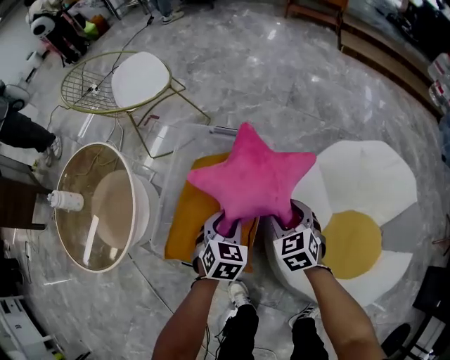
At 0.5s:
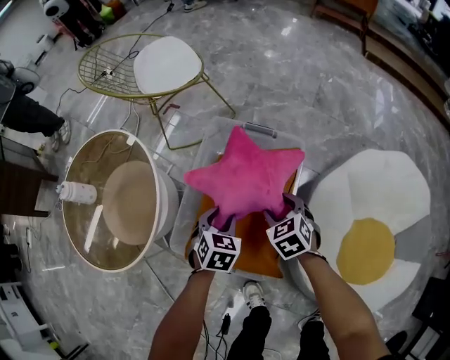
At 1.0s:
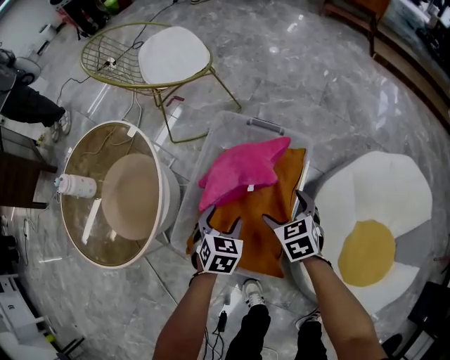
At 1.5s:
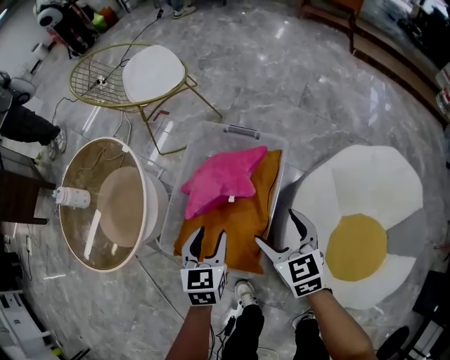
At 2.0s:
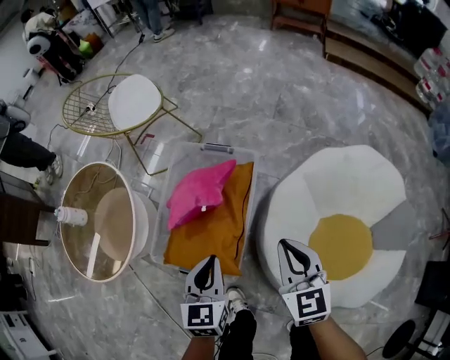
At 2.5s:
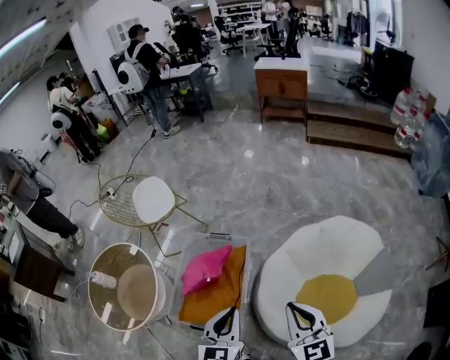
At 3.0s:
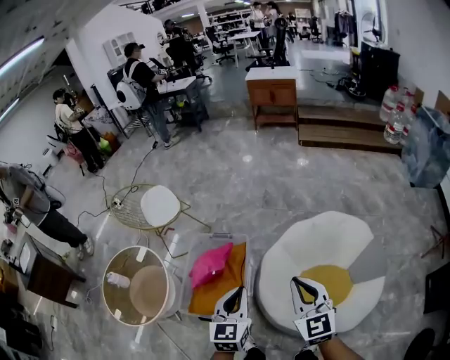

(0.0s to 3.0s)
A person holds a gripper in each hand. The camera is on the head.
0.0s - 1.5s: The right gripper heads to the left and upward, covering about 10 cm. The left gripper shifts about 10 cm to the left, and rotates some 30 degrees.
1.5s - 3.0s: Both grippers move upward, to the right and backward, roughly 60 cm. The left gripper swivels some 30 degrees, and closes up. The right gripper turns by about 30 degrees, and closes its fingers.

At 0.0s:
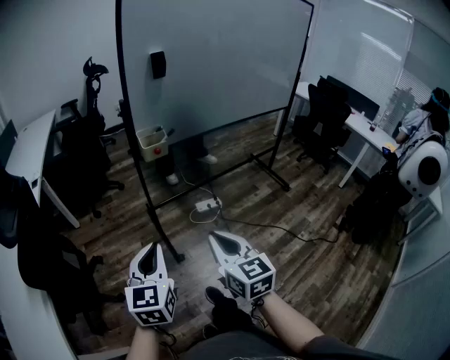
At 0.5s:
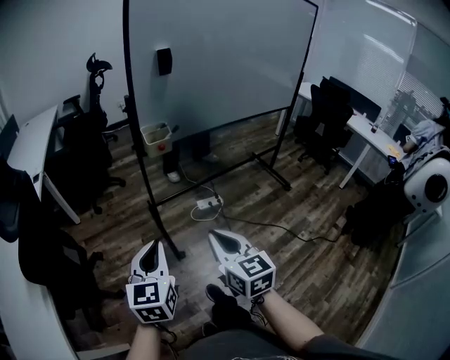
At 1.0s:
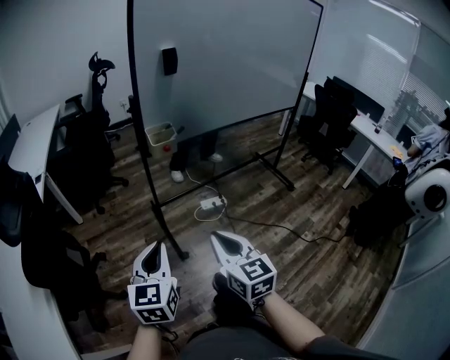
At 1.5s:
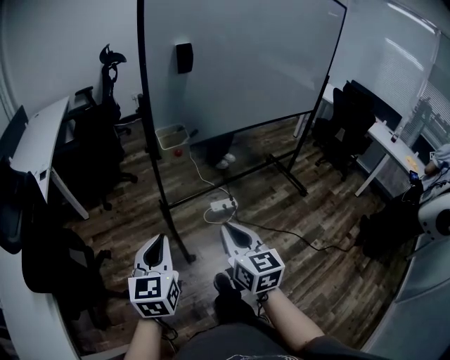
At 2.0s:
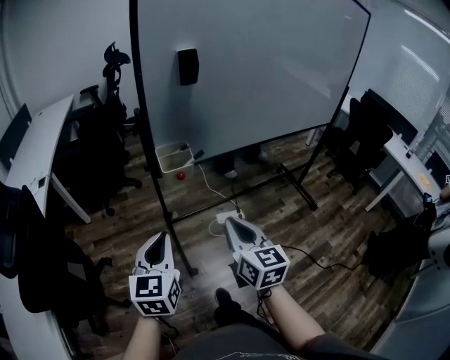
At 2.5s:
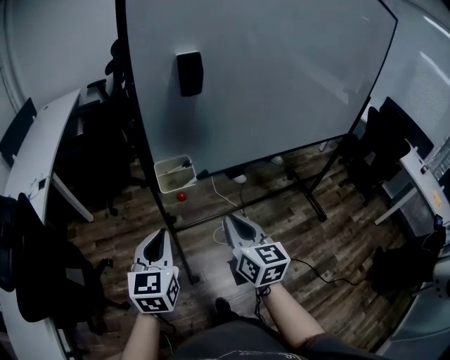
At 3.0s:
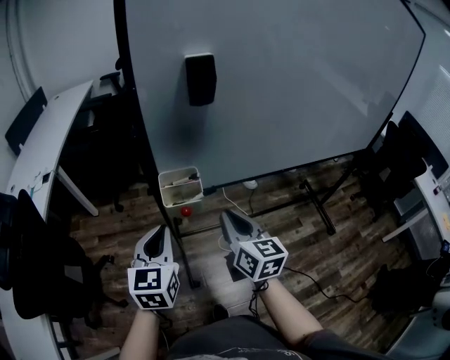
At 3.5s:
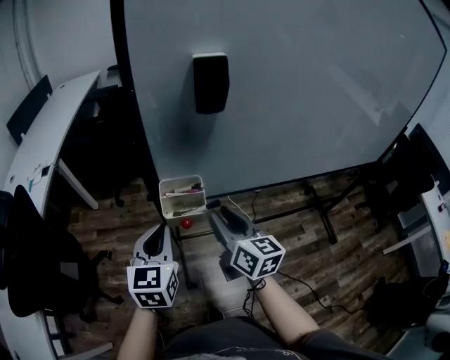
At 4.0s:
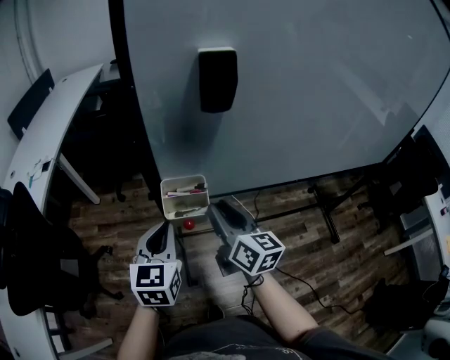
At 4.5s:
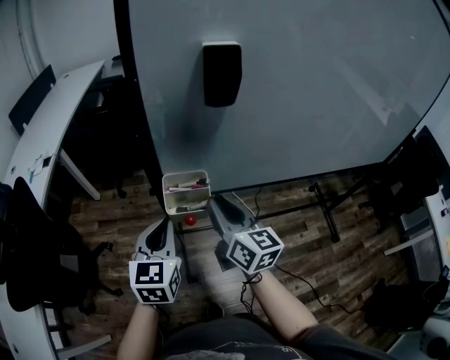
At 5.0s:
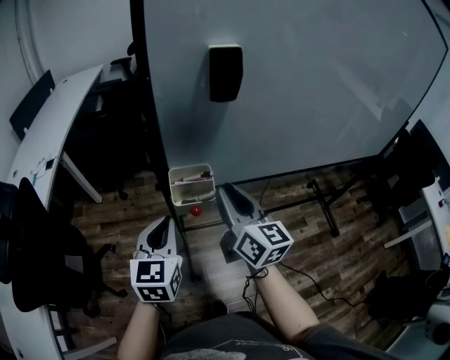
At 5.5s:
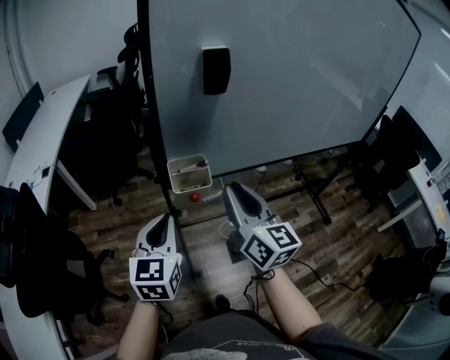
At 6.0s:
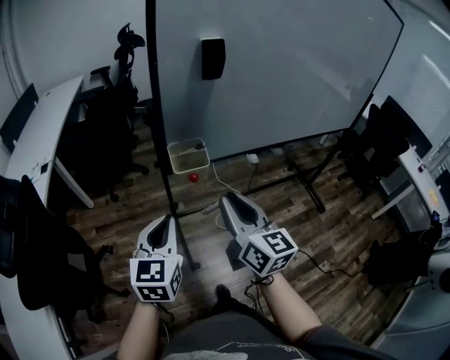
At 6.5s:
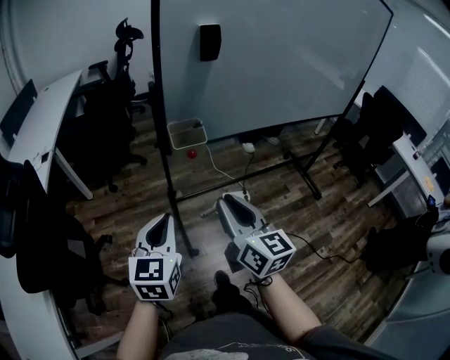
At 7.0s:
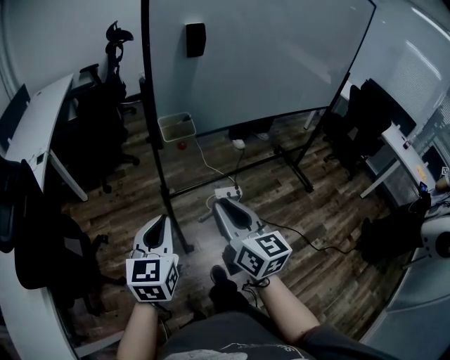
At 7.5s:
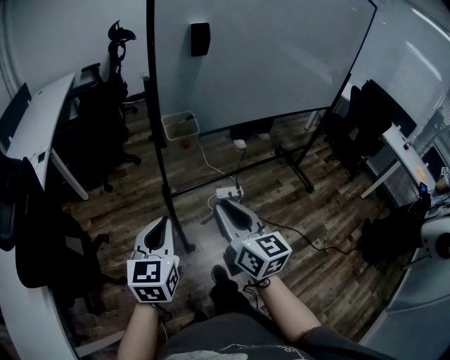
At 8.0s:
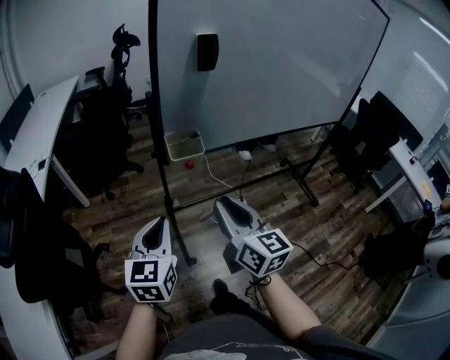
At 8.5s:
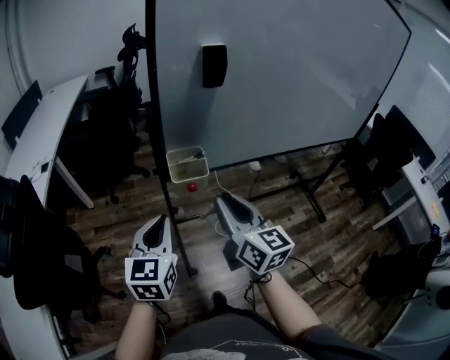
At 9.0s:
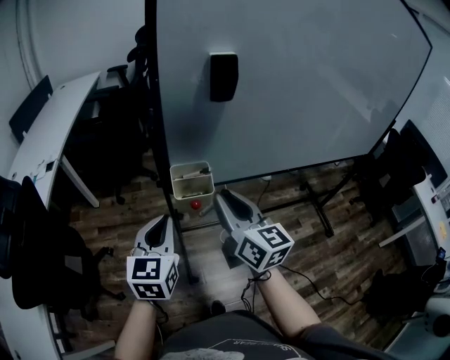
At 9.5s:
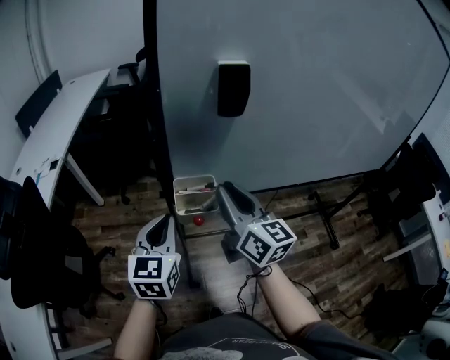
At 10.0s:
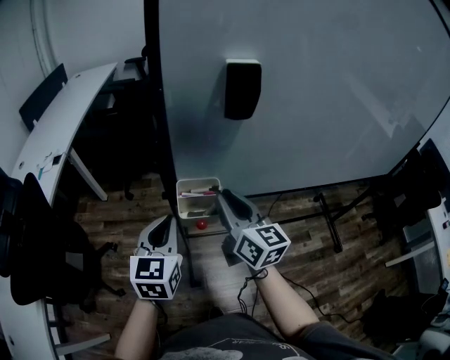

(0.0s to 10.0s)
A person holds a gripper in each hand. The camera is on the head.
0.0s - 2.0s: The grippers both shift forward by about 20 cm.
2.0s - 4.0s: Both grippers travel together forward, about 25 cm. The right gripper turns by some 20 degrees, and opens its fingers.
4.0s - 6.0s: Both grippers move backward, about 15 cm.
6.0s - 8.0s: The right gripper goes approximately 5 cm backward.
8.0s - 10.0s: The two grippers go approximately 20 cm forward.

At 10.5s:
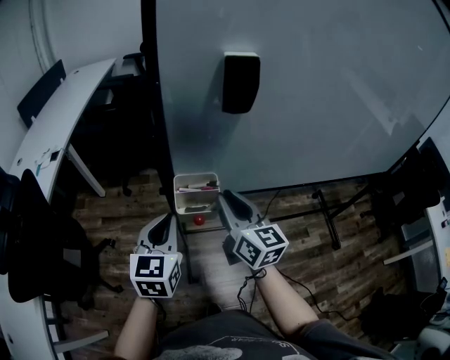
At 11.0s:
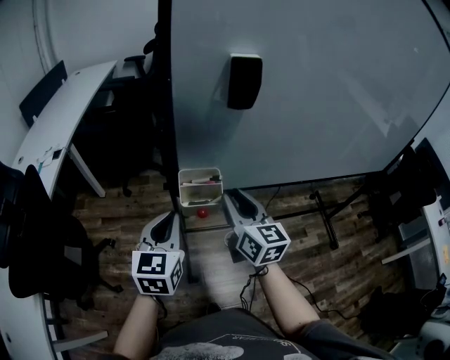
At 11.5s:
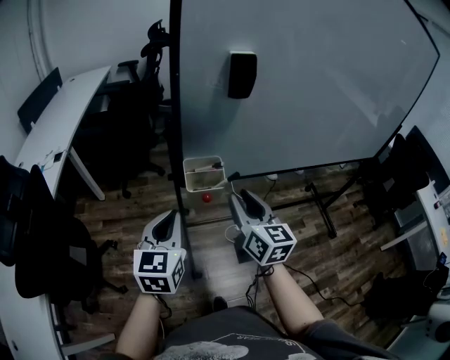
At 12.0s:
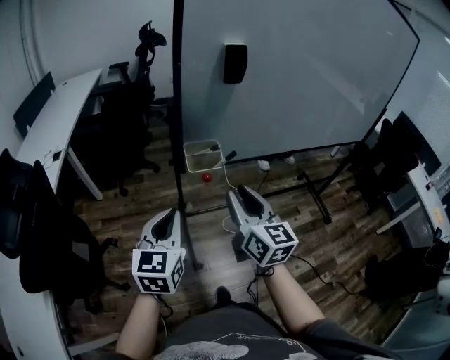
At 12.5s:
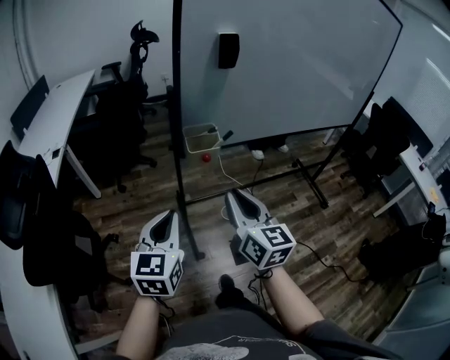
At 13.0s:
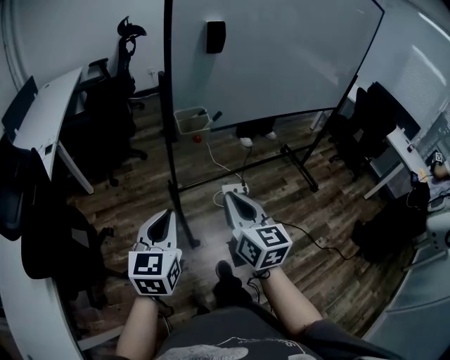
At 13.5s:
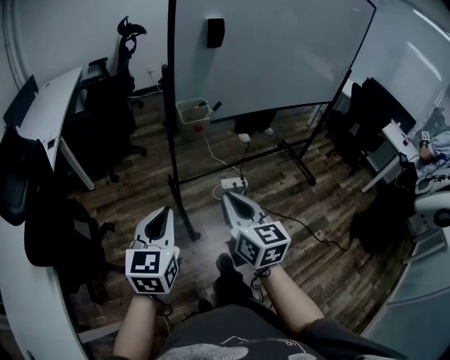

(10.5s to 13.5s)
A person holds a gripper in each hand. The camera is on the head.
10.5s - 12.0s: Both grippers move backward, roughly 15 cm.
12.0s - 13.5s: The two grippers go some 20 cm backward. The right gripper closes up.

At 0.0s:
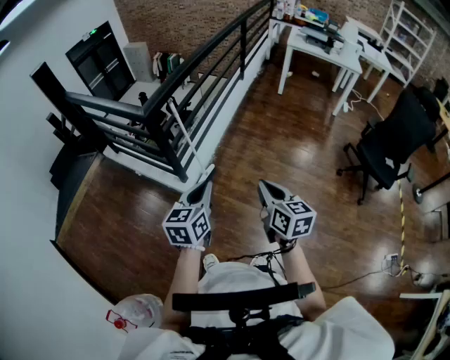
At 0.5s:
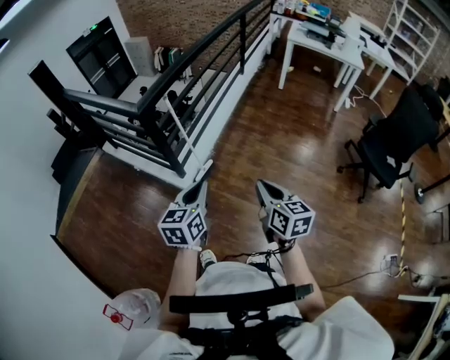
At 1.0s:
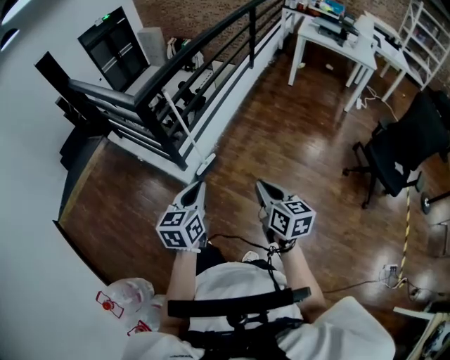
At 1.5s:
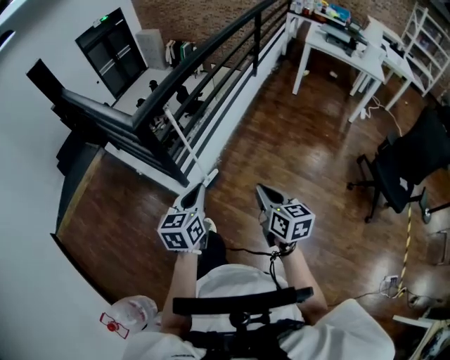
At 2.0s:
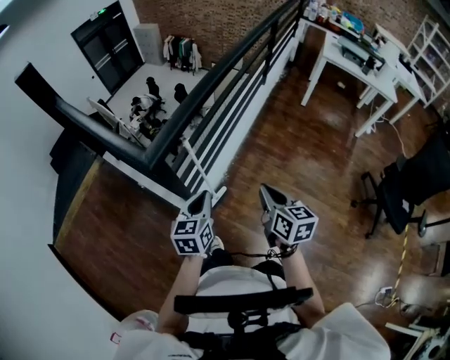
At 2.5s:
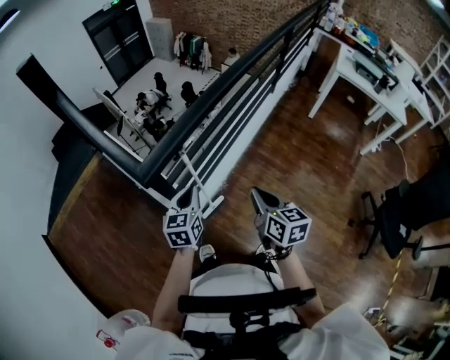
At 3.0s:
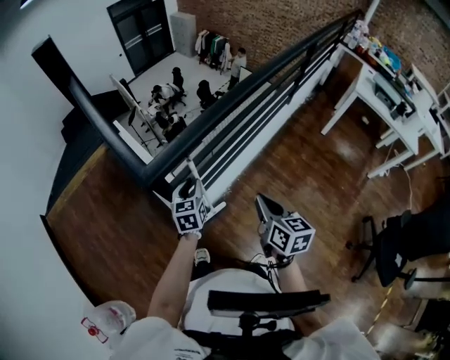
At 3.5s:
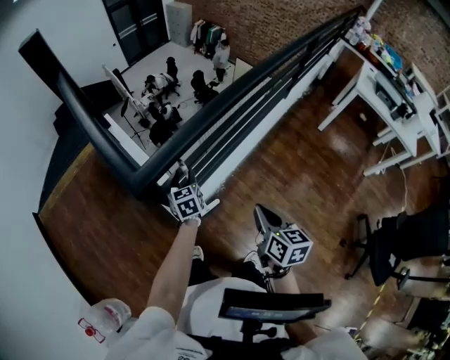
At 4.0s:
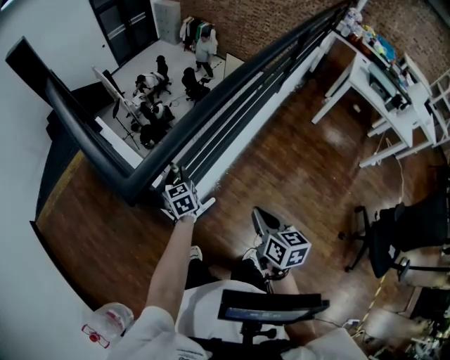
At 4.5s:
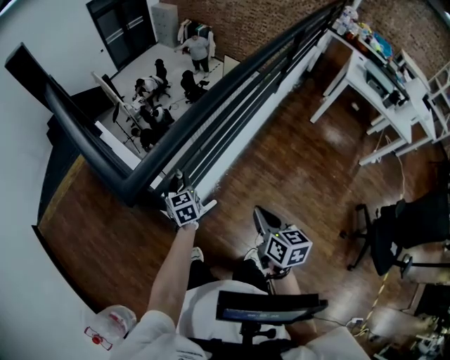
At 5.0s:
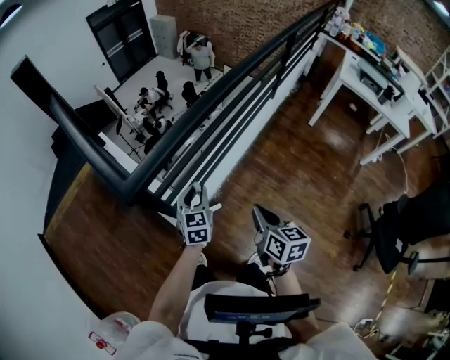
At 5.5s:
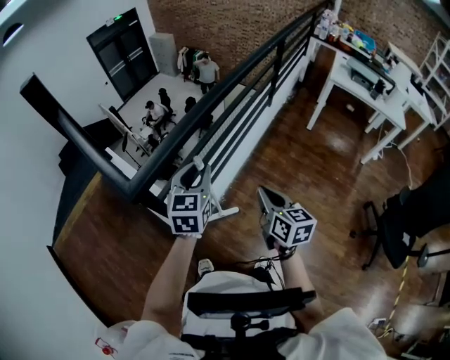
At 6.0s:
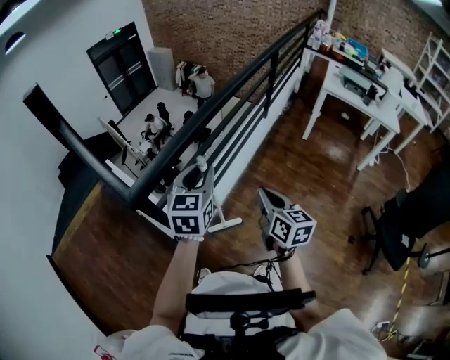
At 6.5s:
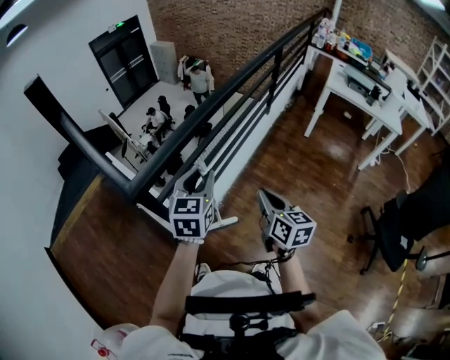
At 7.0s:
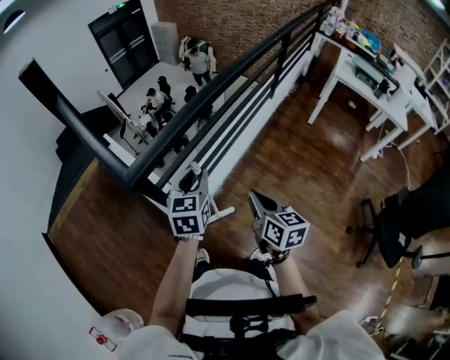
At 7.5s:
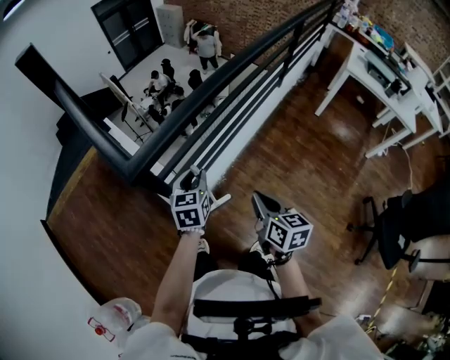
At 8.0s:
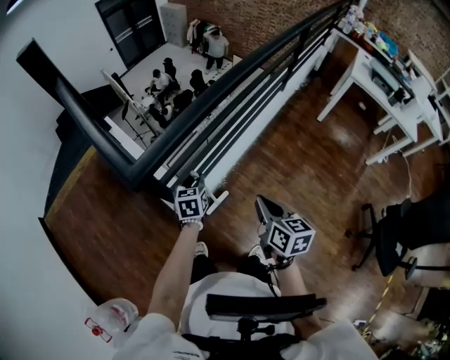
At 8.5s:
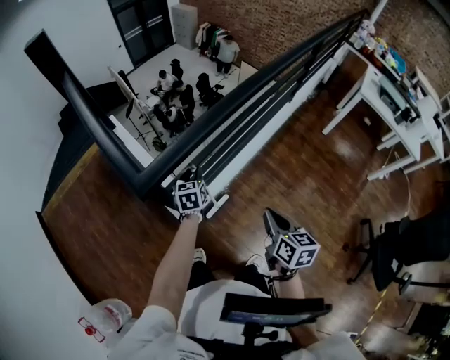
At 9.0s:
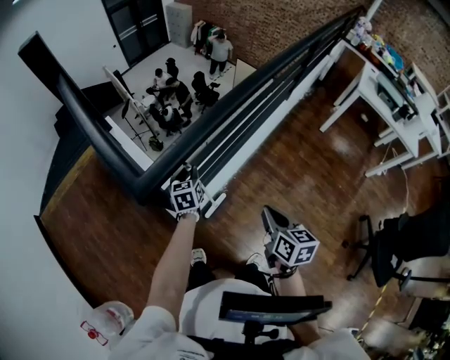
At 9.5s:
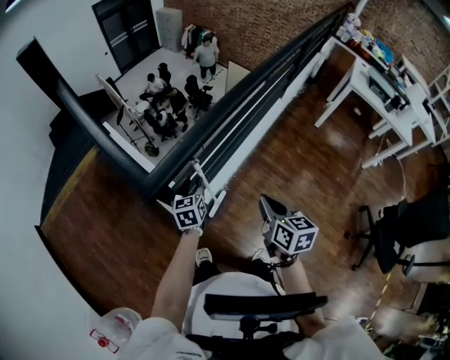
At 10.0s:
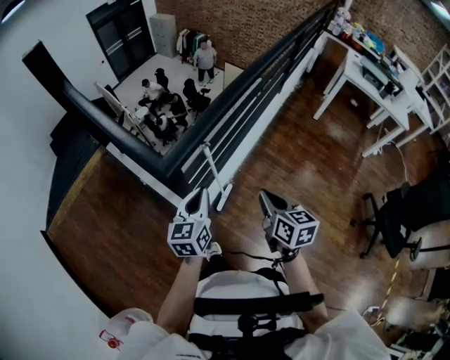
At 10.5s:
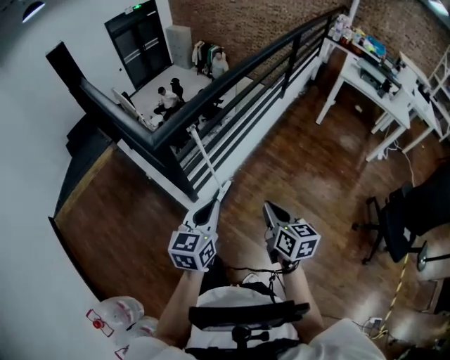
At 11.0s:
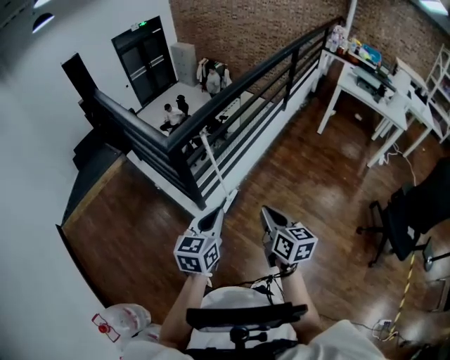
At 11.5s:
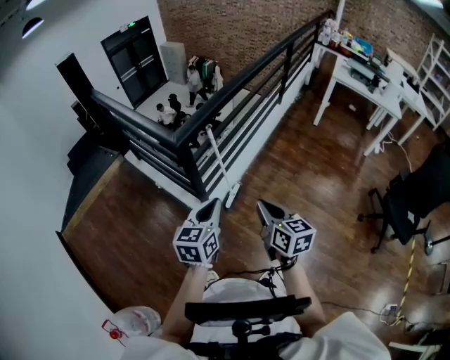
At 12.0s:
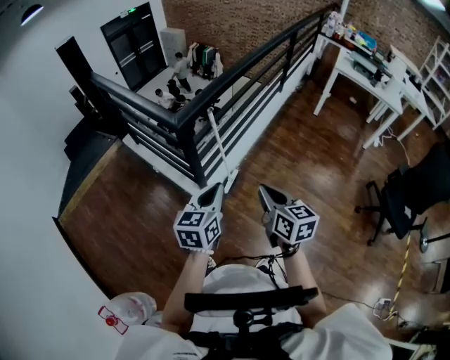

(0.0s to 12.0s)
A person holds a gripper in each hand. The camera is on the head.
0.0s - 2.0s: The two grippers go about 30 cm forward.
2.0s - 4.0s: The right gripper heads forward, covering approximately 10 cm, while the left gripper heads forward and downward, covering some 30 cm, swivels about 30 degrees, and opens.
4.0s - 6.0s: The right gripper moves upward and to the right, roughly 15 cm, while the left gripper goes roughly 35 cm upward, to the right and backward, and turns by some 40 degrees.
6.0s - 8.0s: The right gripper goes roughly 10 cm downward and to the left, while the left gripper travels downward and to the left by roughly 30 cm, and changes its angle by some 30 degrees.
8.0s - 10.0s: The left gripper is displaced upward, to the left and backward by about 20 cm, rotates some 20 degrees, and closes up. Meanwhile the right gripper heads to the left, covering approximately 10 cm.
10.0s - 12.0s: Both grippers move backward, roughly 25 cm.
